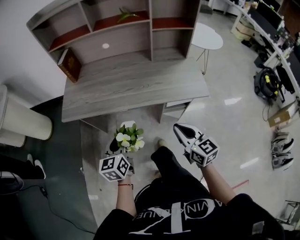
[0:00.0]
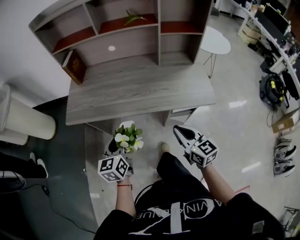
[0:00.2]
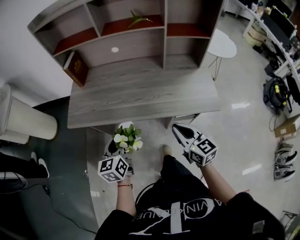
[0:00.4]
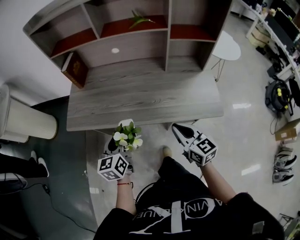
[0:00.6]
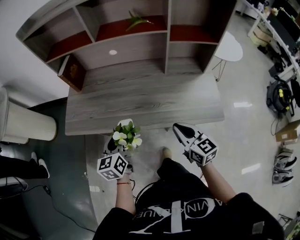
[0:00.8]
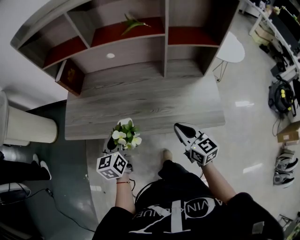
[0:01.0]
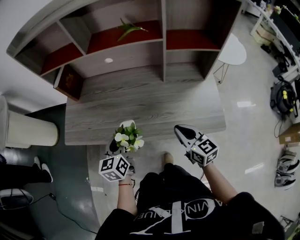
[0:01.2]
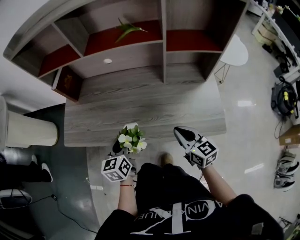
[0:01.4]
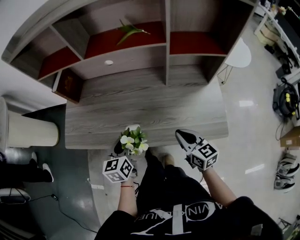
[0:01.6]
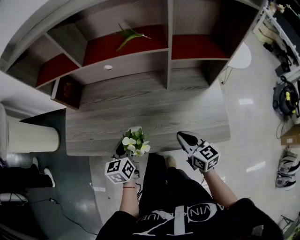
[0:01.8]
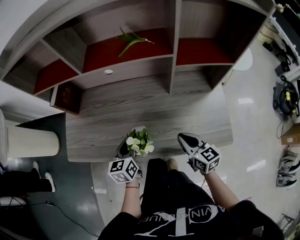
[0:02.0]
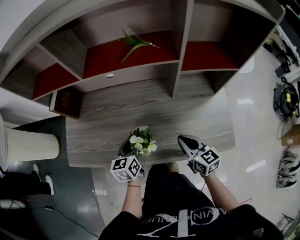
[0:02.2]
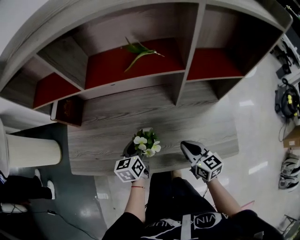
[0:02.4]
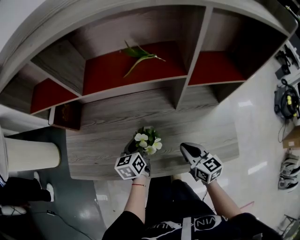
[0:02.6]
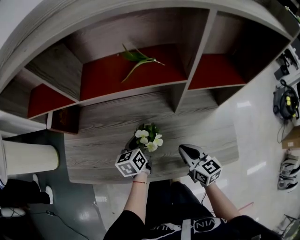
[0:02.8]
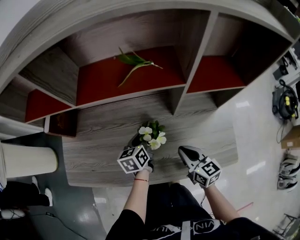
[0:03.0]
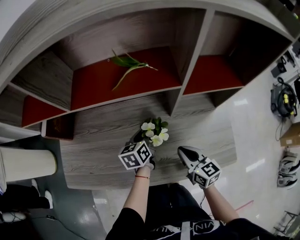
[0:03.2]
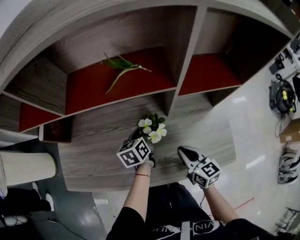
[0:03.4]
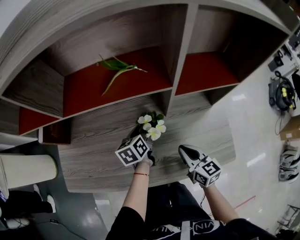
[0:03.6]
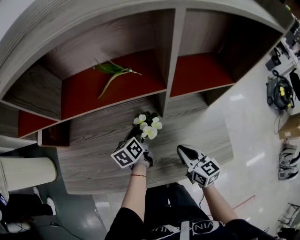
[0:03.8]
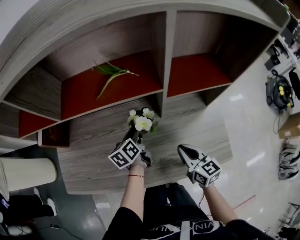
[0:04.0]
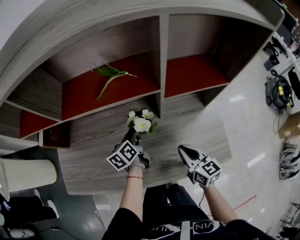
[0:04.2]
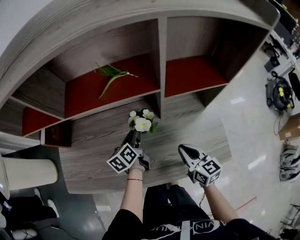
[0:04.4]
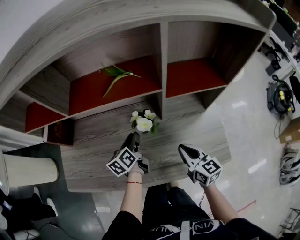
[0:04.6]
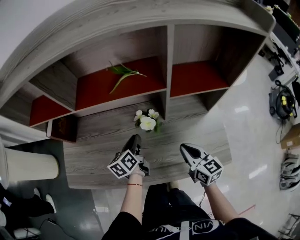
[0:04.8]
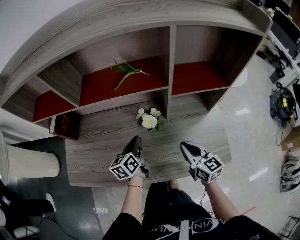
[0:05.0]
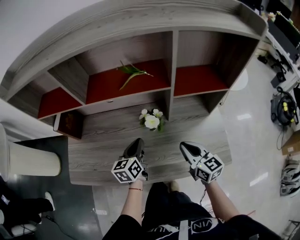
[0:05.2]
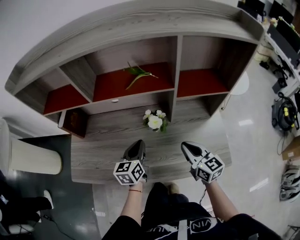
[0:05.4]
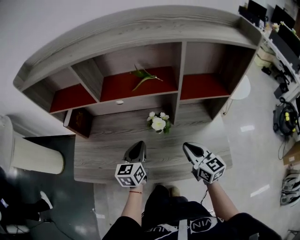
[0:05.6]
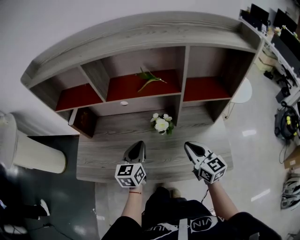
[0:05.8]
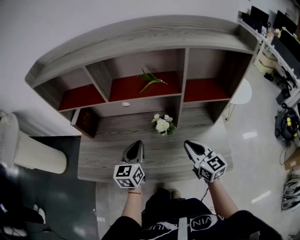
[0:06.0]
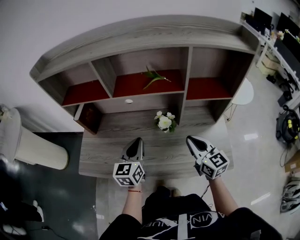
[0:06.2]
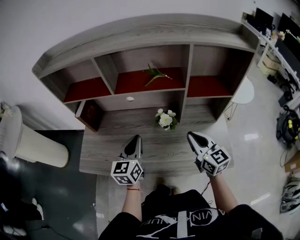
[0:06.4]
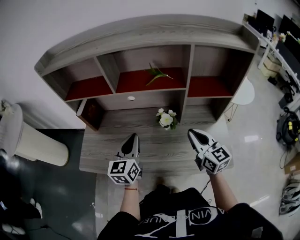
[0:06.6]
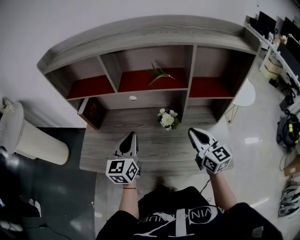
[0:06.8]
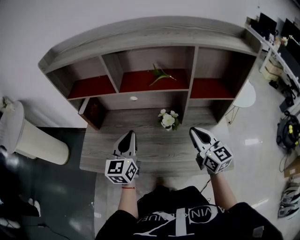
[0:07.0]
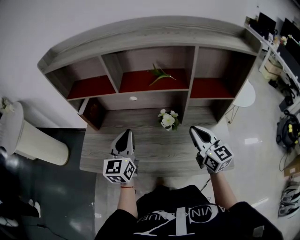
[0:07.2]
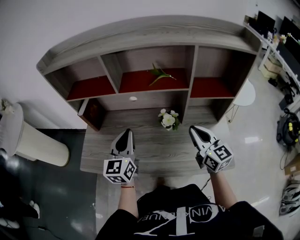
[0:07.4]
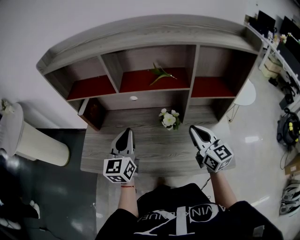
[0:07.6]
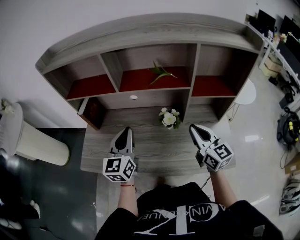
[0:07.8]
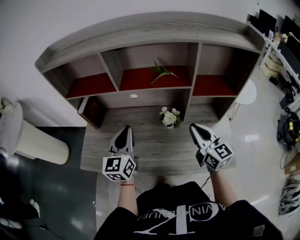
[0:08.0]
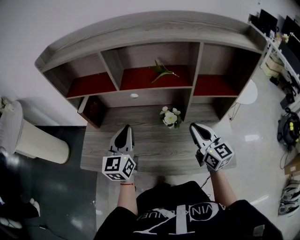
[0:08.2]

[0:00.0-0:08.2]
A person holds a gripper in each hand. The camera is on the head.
0:00.0 to 0:01.6: The grippers both shift forward by roughly 25 cm.
0:01.6 to 0:03.2: The right gripper is displaced forward by some 10 cm. The left gripper moves forward and to the right, roughly 25 cm.
0:03.2 to 0:05.0: Both grippers move upward, approximately 5 cm.
0:05.0 to 0:06.6: The left gripper travels upward, to the left and backward by about 20 cm, and turns by roughly 30 degrees. Meanwhile the right gripper travels upward by roughly 10 cm.
0:06.6 to 0:08.2: The left gripper changes place by about 5 cm.

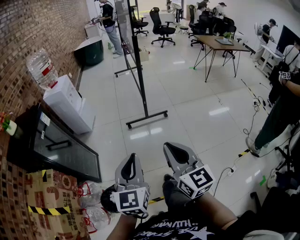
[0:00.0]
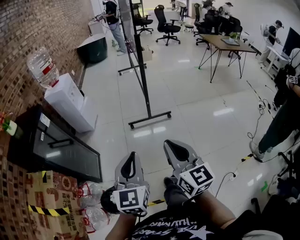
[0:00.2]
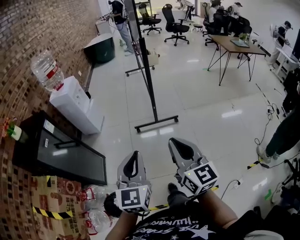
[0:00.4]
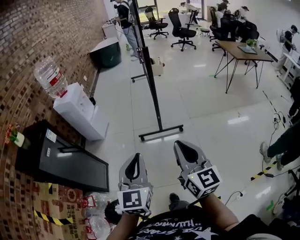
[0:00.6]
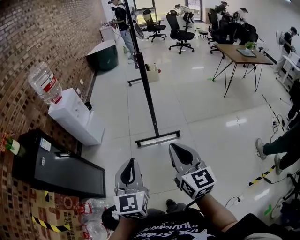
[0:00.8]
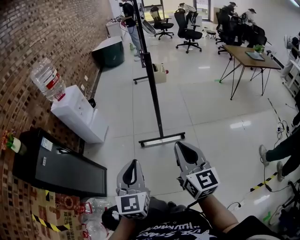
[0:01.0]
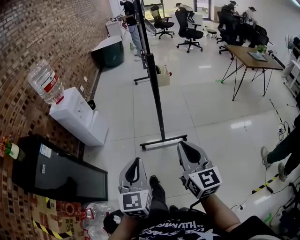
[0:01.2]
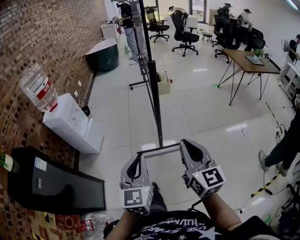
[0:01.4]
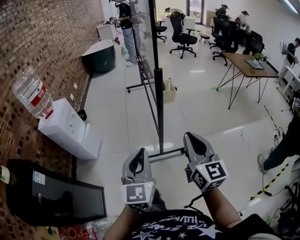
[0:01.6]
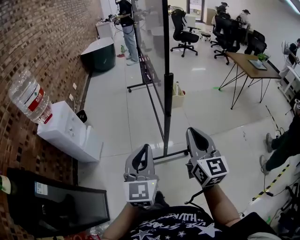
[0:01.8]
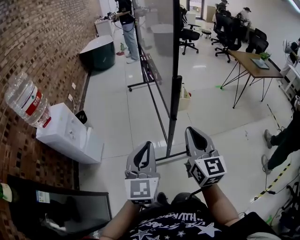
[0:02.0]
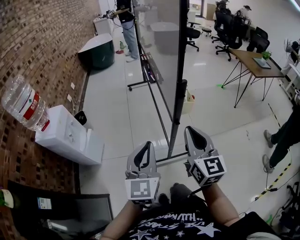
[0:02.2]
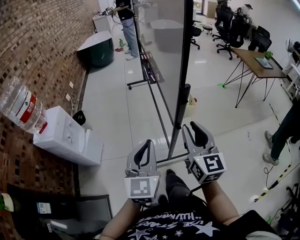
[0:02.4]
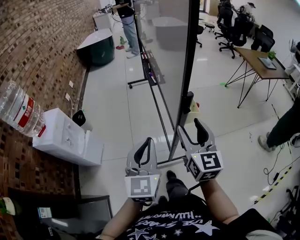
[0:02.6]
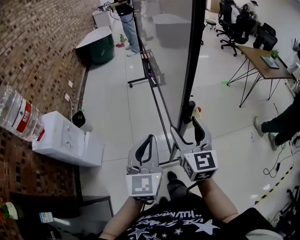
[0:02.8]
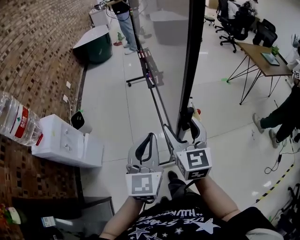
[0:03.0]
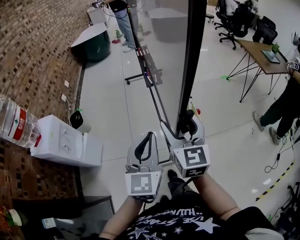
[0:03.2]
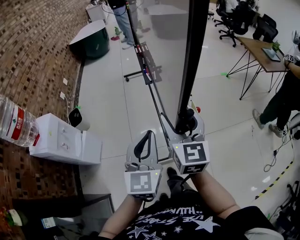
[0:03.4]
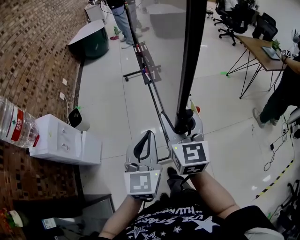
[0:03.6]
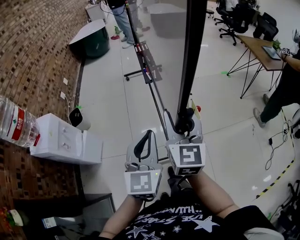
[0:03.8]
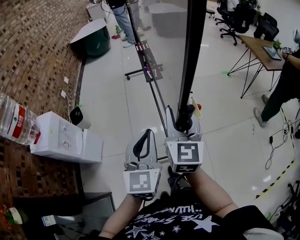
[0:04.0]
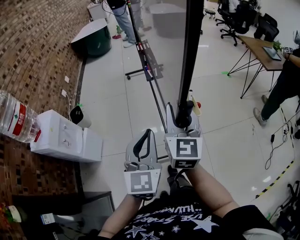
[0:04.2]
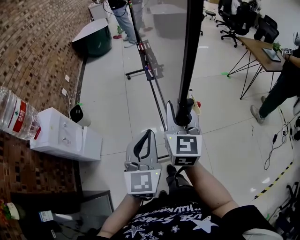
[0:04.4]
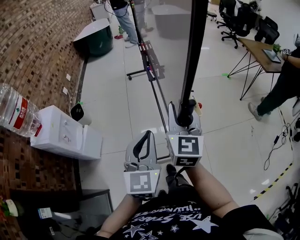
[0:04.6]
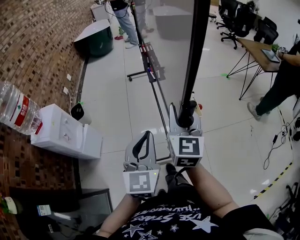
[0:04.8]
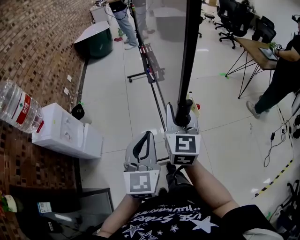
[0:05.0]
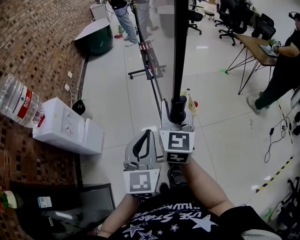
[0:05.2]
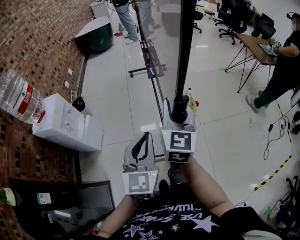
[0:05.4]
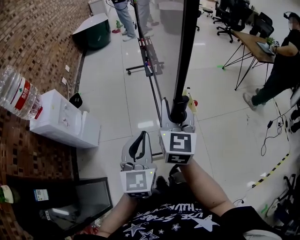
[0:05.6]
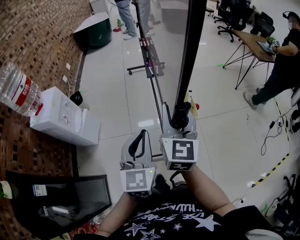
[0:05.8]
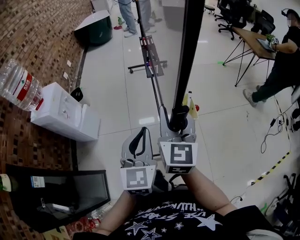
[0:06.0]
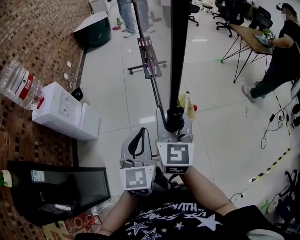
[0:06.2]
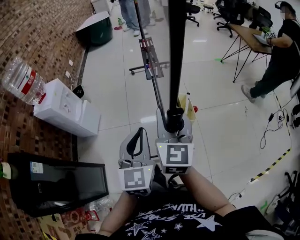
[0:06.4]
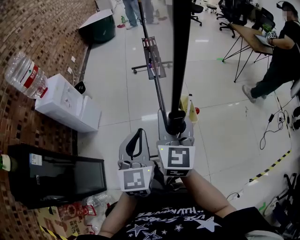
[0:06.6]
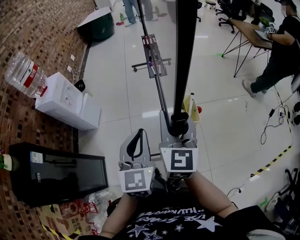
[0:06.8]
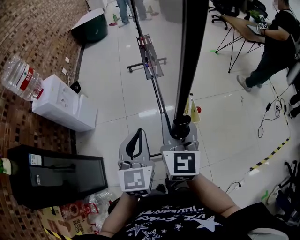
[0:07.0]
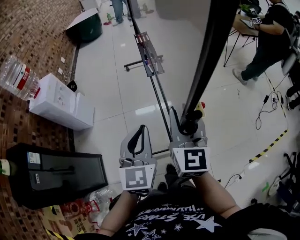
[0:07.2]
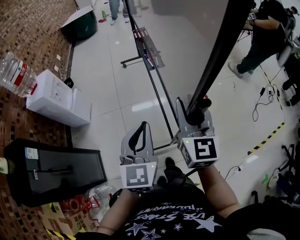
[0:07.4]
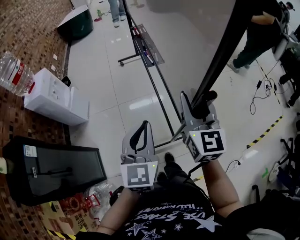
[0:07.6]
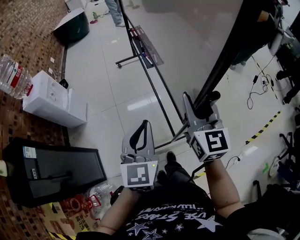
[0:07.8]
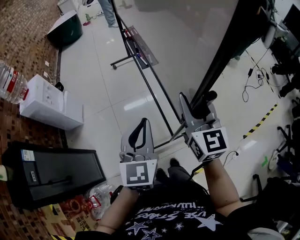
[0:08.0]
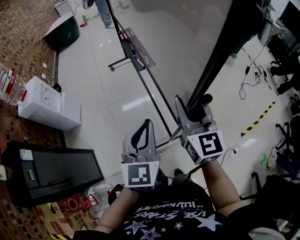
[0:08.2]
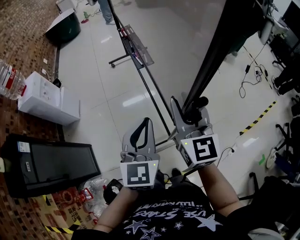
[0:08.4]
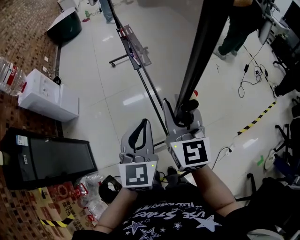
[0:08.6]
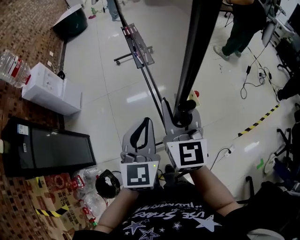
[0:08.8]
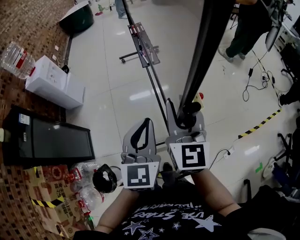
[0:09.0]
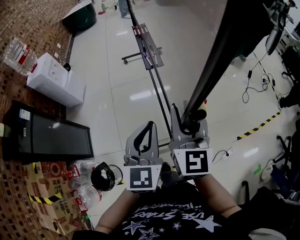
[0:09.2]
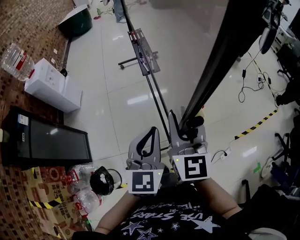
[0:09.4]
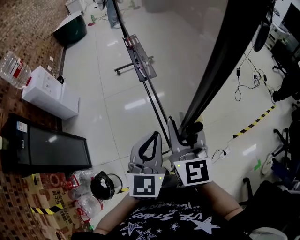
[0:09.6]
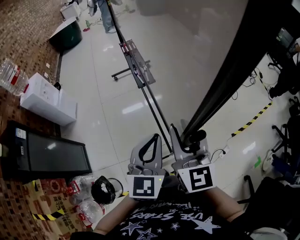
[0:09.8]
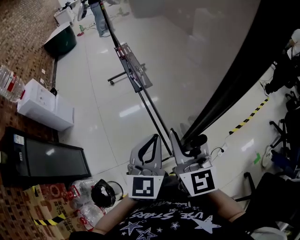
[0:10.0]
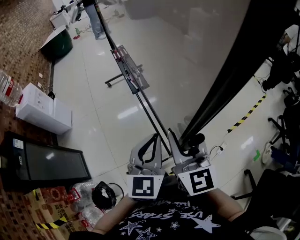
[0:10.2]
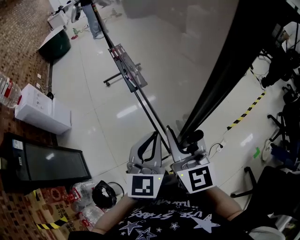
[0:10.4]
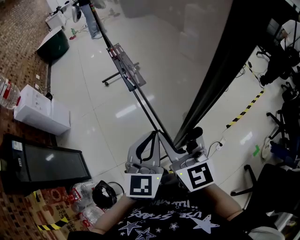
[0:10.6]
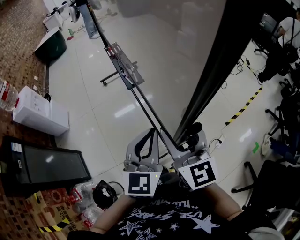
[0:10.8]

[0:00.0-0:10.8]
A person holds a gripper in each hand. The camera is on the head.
0:00.0 to 0:01.6: The pair of grippers is taken forward, roughly 40 cm.
0:01.6 to 0:03.0: Both grippers travel together forward, some 25 cm. The right gripper opens its fingers.
0:03.0 to 0:04.6: The right gripper closes.
0:04.6 to 0:06.2: The two grippers go approximately 20 cm backward.
0:06.2 to 0:07.8: The right gripper shifts roughly 25 cm backward and to the right, while the left gripper travels backward by roughly 20 cm.
0:07.8 to 0:09.2: The right gripper goes some 20 cm backward and to the right, while the left gripper is displaced to the right and backward by roughly 20 cm.
0:09.2 to 0:10.8: The right gripper heads backward, covering approximately 10 cm, and opens. The left gripper moves to the right, about 5 cm.

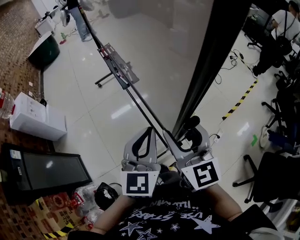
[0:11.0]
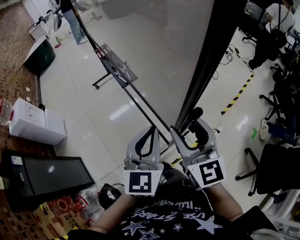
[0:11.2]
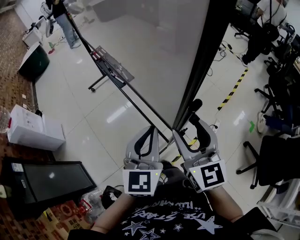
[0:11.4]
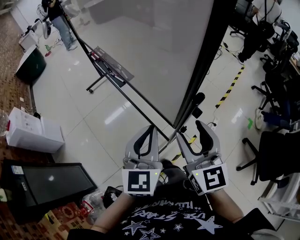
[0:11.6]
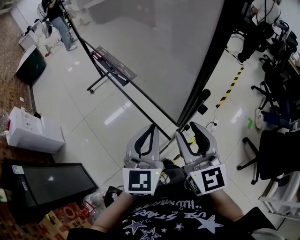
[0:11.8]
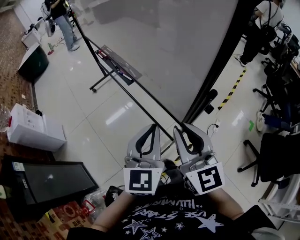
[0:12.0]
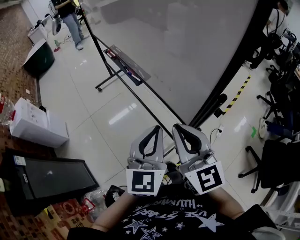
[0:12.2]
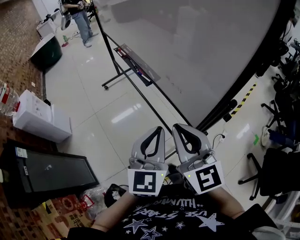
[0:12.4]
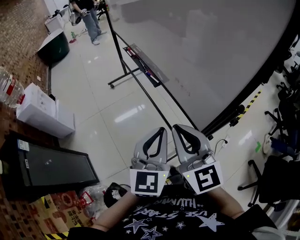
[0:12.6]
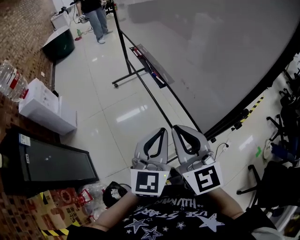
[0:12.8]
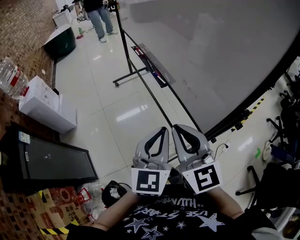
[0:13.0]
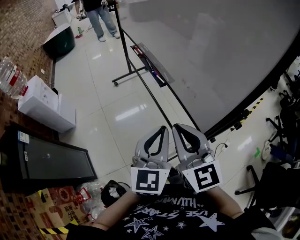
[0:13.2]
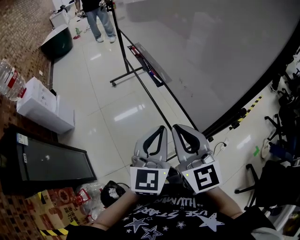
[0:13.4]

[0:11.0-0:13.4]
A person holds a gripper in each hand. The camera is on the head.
0:11.0 to 0:12.2: The right gripper goes roughly 10 cm to the left and backward, and closes. Meanwhile the left gripper ends up approximately 5 cm from where it was.
0:12.2 to 0:13.4: The right gripper travels to the left by approximately 5 cm.

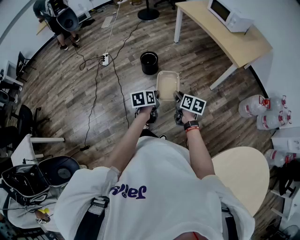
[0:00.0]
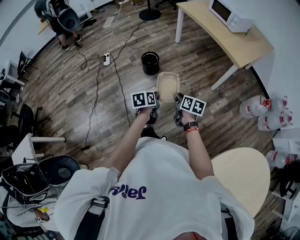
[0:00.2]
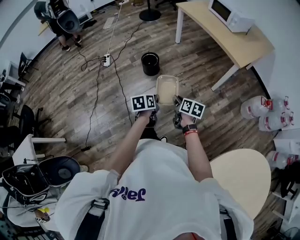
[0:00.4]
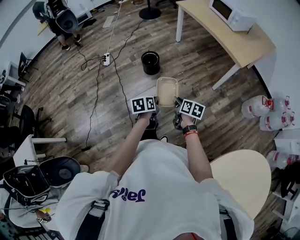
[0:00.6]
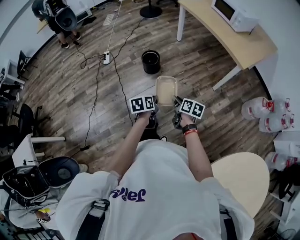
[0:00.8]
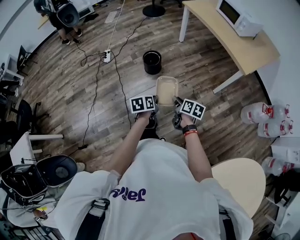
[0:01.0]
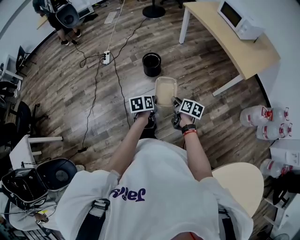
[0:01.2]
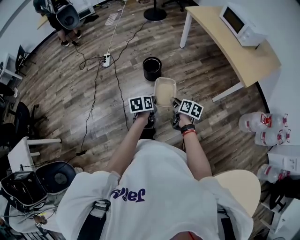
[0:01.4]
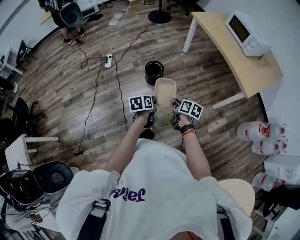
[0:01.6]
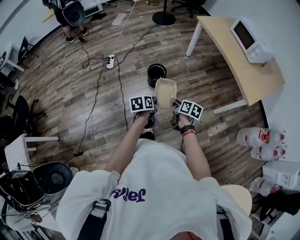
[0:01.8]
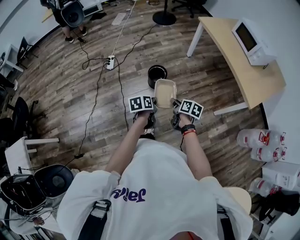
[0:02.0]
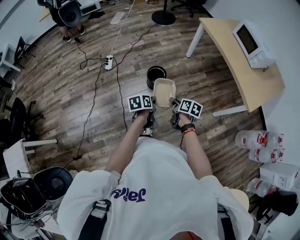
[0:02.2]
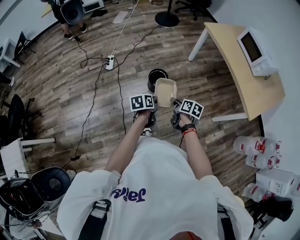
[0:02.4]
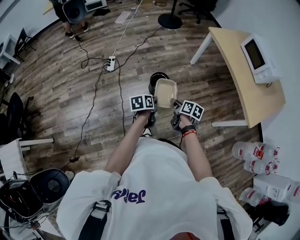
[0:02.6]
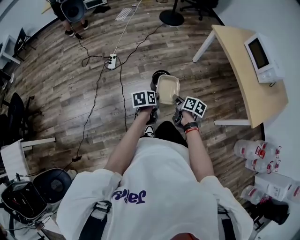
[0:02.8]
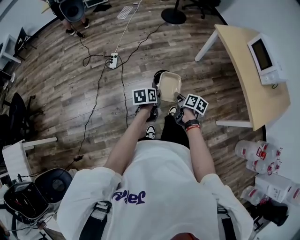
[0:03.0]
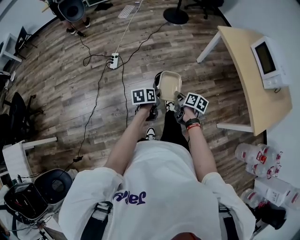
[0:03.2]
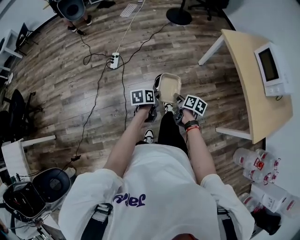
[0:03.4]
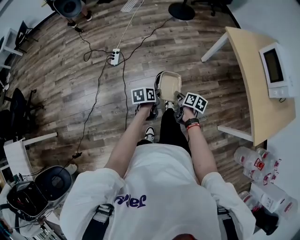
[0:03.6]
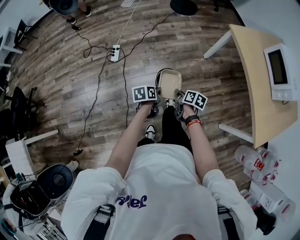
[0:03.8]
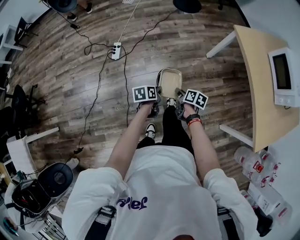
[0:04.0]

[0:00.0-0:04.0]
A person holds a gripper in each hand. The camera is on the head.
0:00.0 to 0:01.4: Both grippers travel together forward, some 15 cm.
0:01.4 to 0:02.6: Both grippers travel together forward and to the left, about 30 cm.
0:02.6 to 0:04.0: The two grippers go about 30 cm forward and downward.
